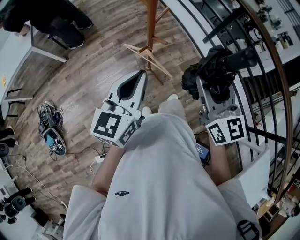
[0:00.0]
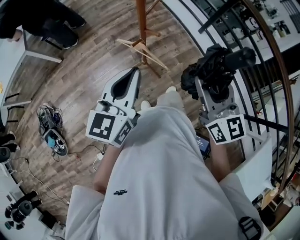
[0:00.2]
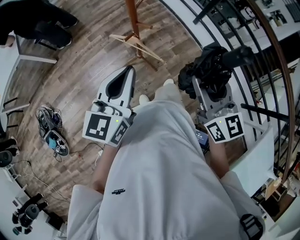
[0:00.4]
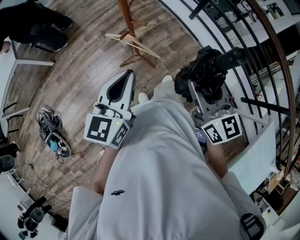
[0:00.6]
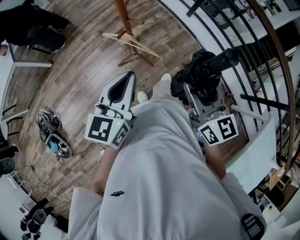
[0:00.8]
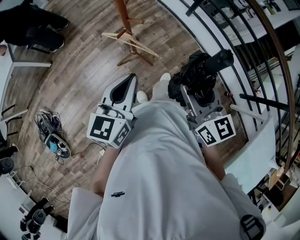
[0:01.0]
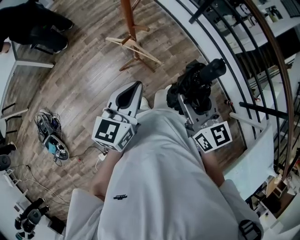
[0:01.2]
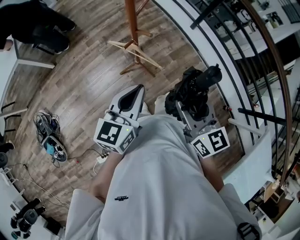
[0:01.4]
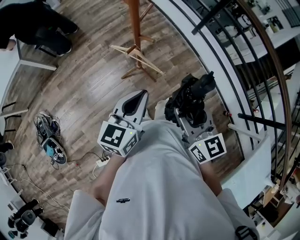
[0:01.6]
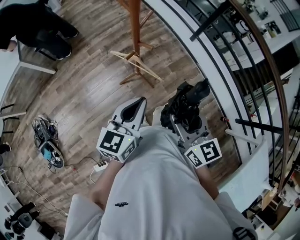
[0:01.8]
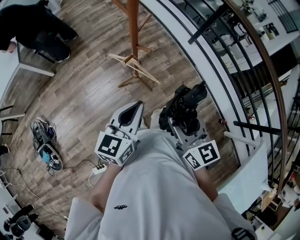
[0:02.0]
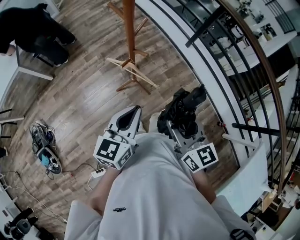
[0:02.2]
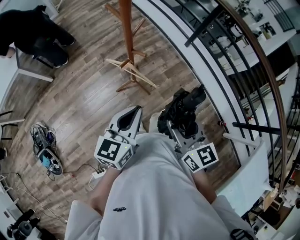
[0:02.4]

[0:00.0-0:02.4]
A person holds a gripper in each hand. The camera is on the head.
0:00.0 to 0:01.2: The left gripper shifts roughly 5 cm downward. Meanwhile the right gripper travels backward and downward by approximately 10 cm.
0:01.2 to 0:02.4: The grippers stay close to where they were, moving slightly.

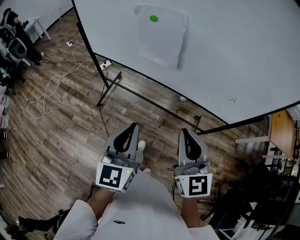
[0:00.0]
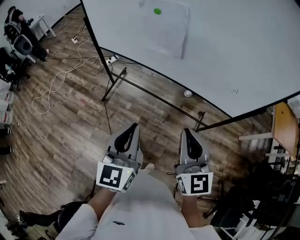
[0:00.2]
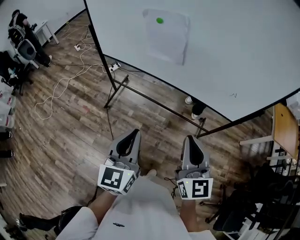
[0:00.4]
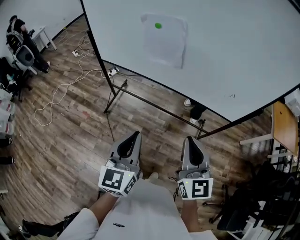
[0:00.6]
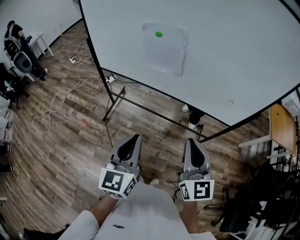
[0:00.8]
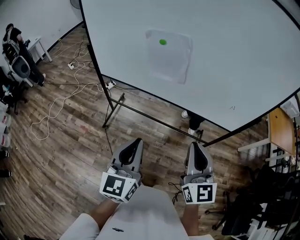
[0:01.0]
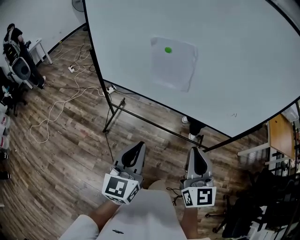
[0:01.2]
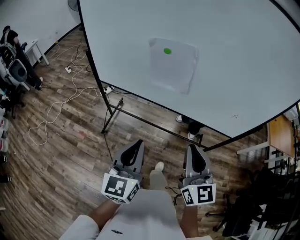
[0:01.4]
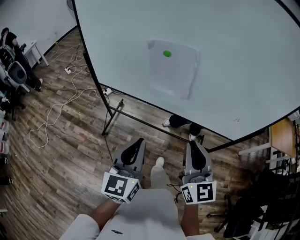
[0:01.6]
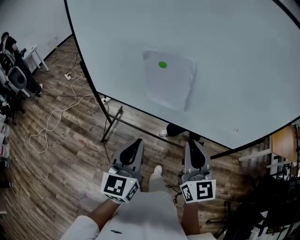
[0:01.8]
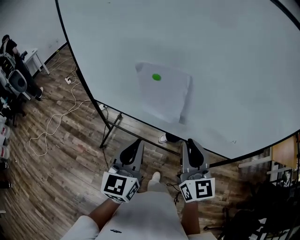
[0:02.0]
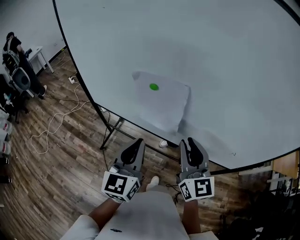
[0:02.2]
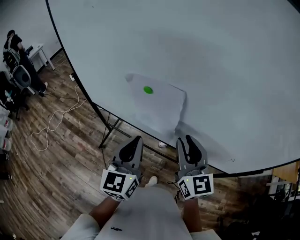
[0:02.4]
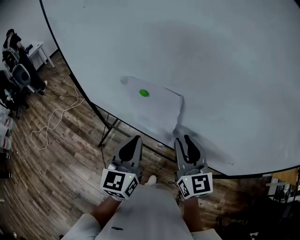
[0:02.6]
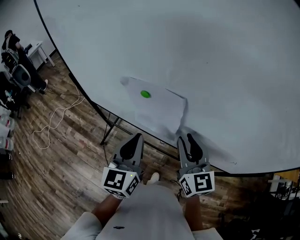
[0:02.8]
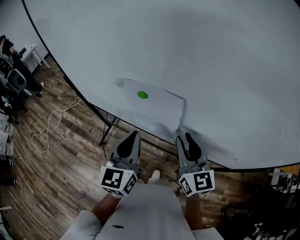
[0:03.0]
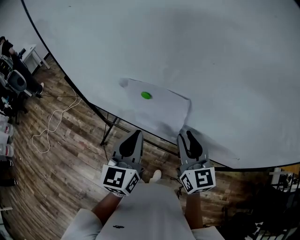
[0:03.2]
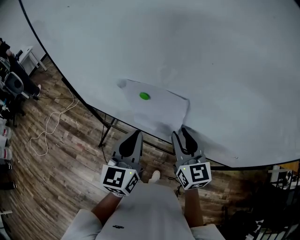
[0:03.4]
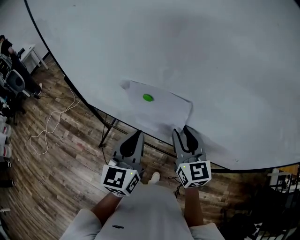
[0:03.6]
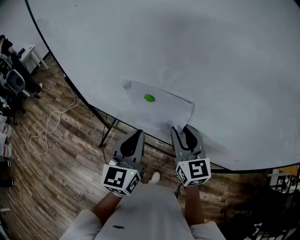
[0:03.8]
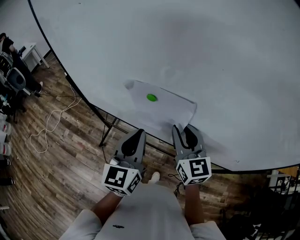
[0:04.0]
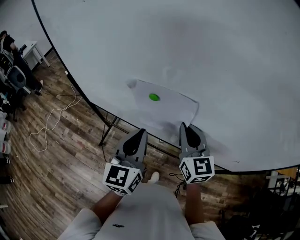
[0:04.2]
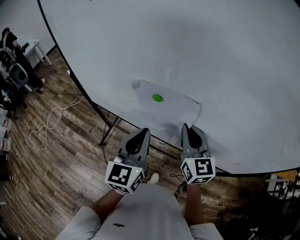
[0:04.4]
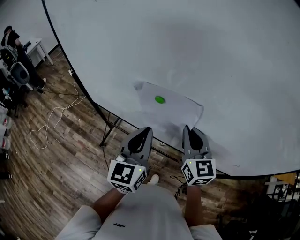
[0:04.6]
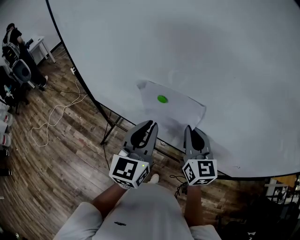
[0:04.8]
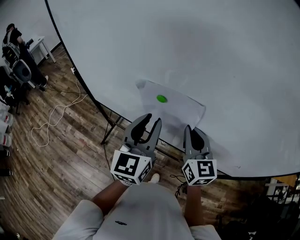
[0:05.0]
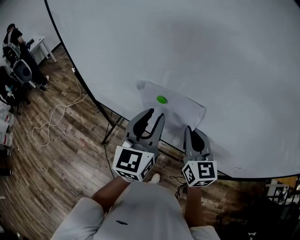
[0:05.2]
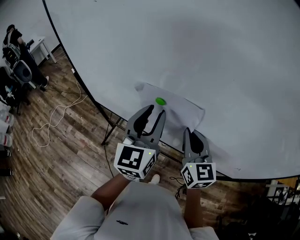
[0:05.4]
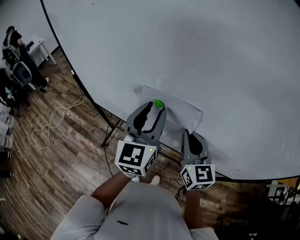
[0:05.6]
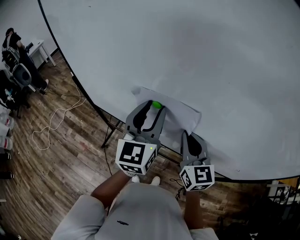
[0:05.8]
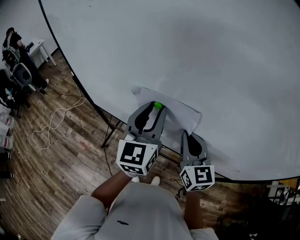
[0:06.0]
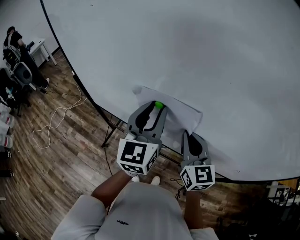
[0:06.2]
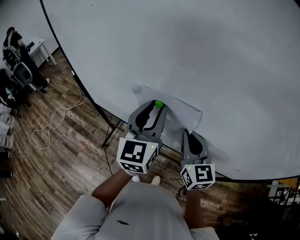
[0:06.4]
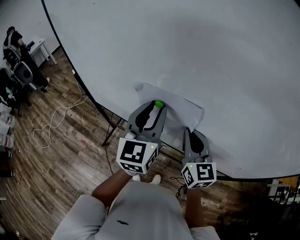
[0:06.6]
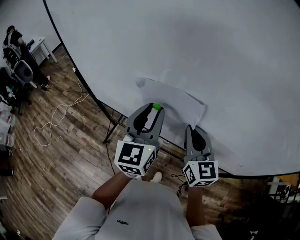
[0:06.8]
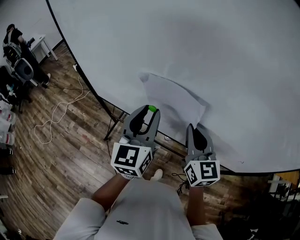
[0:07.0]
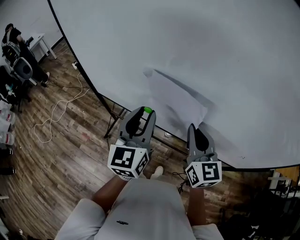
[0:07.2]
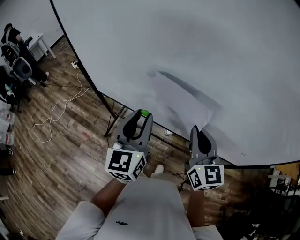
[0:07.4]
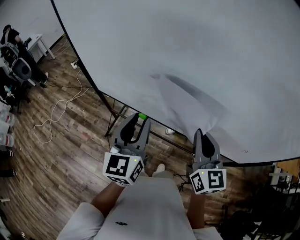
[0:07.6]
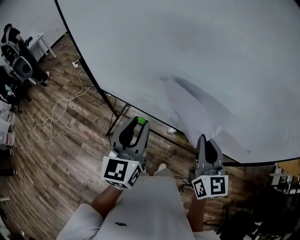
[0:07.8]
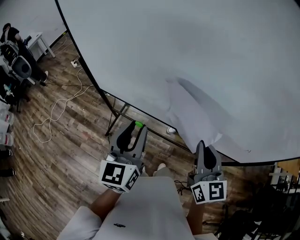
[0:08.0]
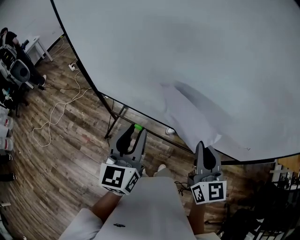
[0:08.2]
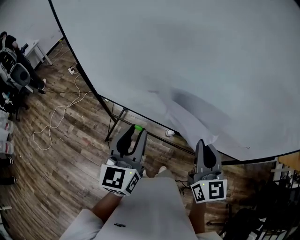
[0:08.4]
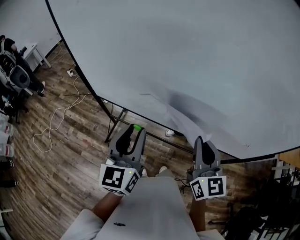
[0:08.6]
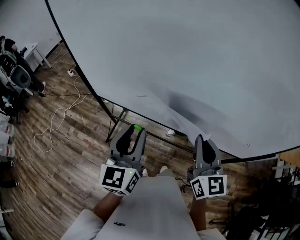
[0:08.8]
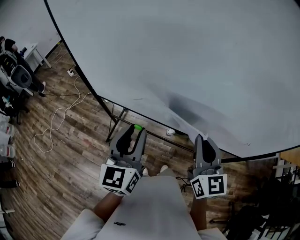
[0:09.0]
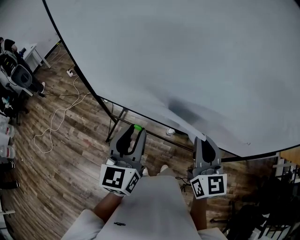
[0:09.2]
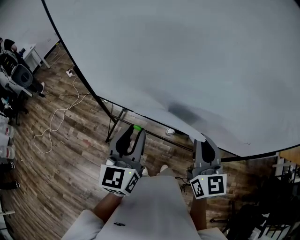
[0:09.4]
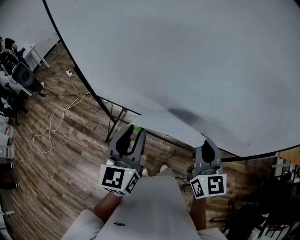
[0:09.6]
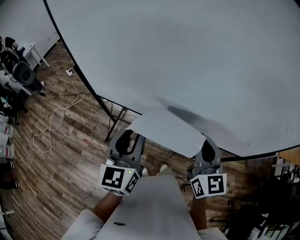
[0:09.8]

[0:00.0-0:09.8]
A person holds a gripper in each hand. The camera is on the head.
0:00.0 to 0:01.4: The grippers both shift to the left by approximately 5 cm. The right gripper travels backward and back again, approximately 5 cm each way; the left gripper travels backward and back again, some 5 cm each way.
0:01.4 to 0:02.8: Both grippers move forward, about 25 cm. The right gripper opens.
0:02.8 to 0:04.2: The right gripper moves forward, approximately 5 cm, and closes its fingers.
0:04.2 to 0:05.6: The left gripper is displaced forward and upward by roughly 10 cm, and opens.
0:05.6 to 0:07.0: The left gripper moves roughly 5 cm.
0:07.0 to 0:08.4: The right gripper heads backward, covering about 10 cm; the left gripper heads backward and to the left, covering roughly 10 cm.
0:08.4 to 0:09.8: The grippers make only small movements.

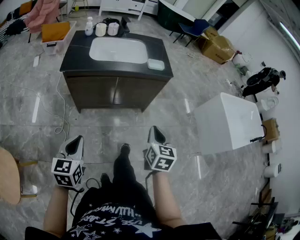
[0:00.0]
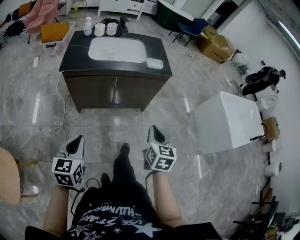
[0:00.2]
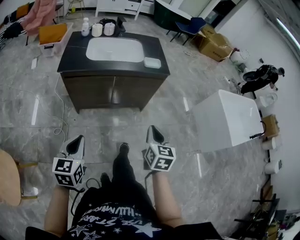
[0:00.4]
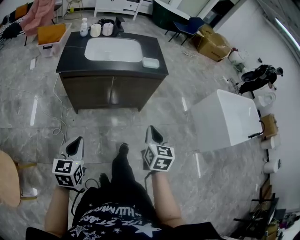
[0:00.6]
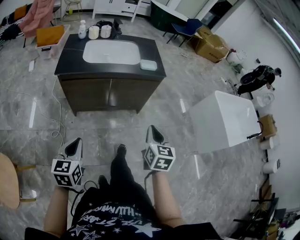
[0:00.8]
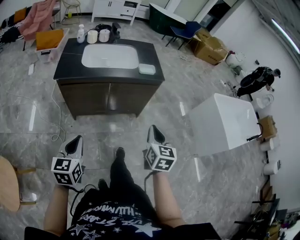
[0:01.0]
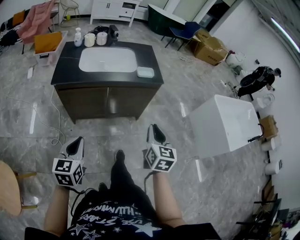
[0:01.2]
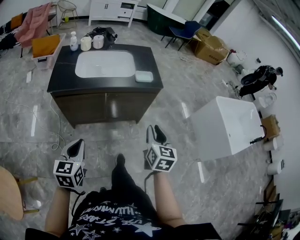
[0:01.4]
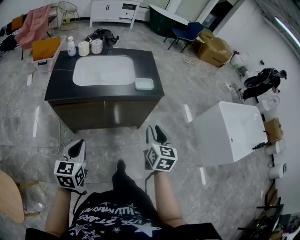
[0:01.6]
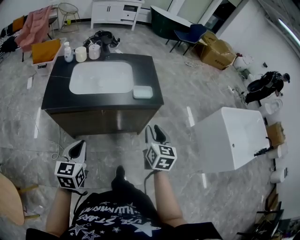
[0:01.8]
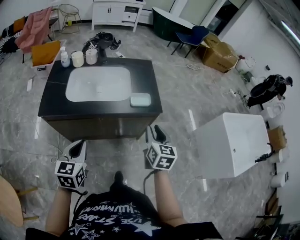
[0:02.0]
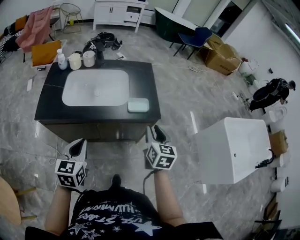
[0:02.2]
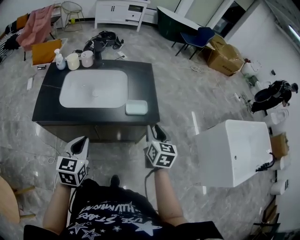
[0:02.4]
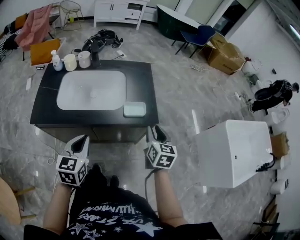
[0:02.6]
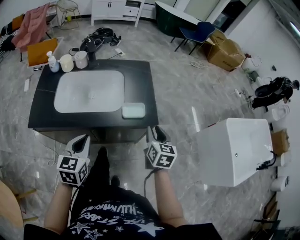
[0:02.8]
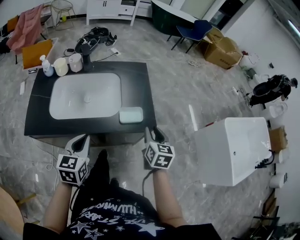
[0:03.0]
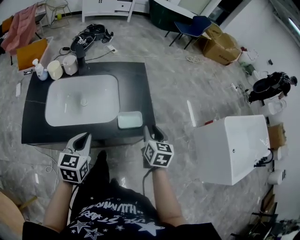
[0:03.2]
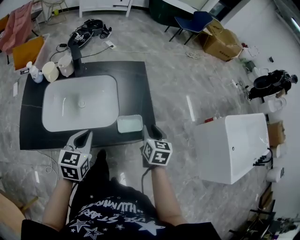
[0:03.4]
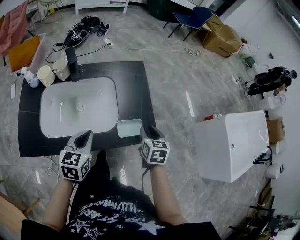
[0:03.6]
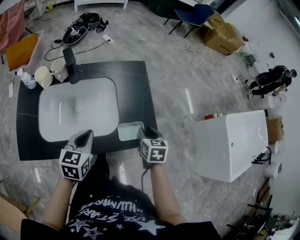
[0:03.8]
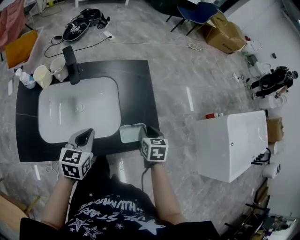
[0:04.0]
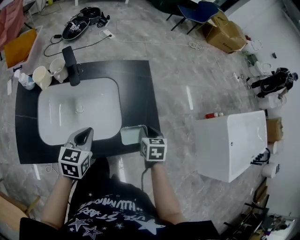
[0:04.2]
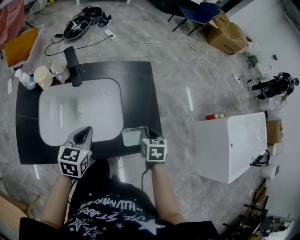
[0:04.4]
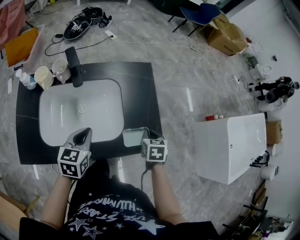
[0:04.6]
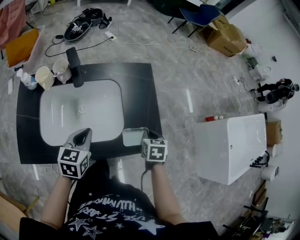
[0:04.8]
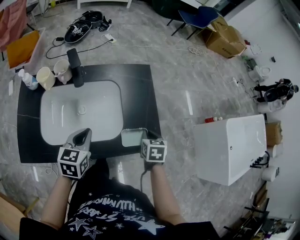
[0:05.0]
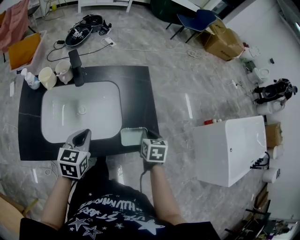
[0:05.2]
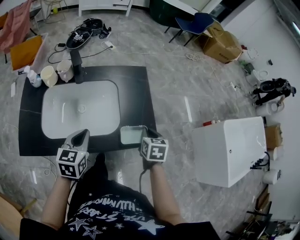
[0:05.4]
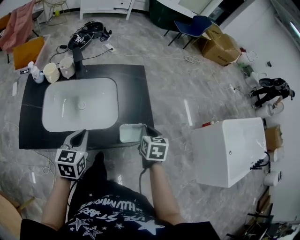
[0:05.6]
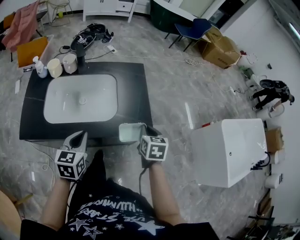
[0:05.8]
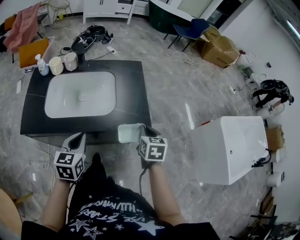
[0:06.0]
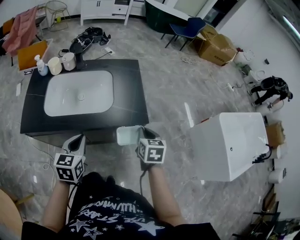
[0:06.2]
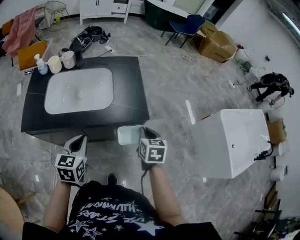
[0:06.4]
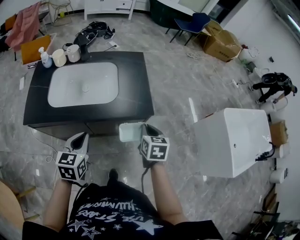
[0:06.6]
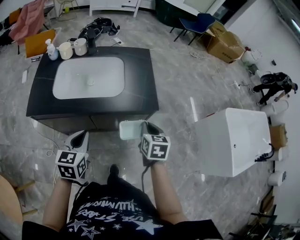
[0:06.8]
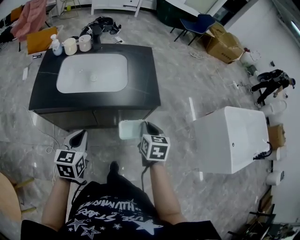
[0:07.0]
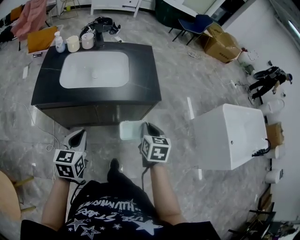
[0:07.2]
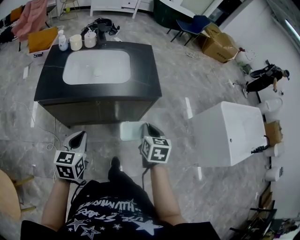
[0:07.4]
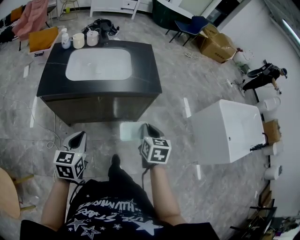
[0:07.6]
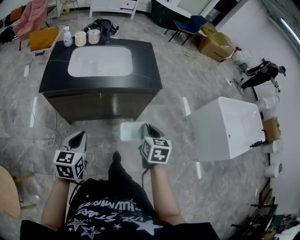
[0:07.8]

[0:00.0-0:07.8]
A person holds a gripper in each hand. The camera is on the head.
0:00.0 to 0:01.6: The grippers both shift forward by approximately 15 cm. The right gripper opens its fingers.
0:01.6 to 0:03.2: Both grippers move forward, roughly 30 cm.
0:03.2 to 0:04.6: The right gripper moves downward and forward, approximately 10 cm, changes its angle by roughly 30 degrees, and closes up, while the left gripper shifts some 15 cm forward and downward.
0:04.6 to 0:06.2: The left gripper goes about 20 cm backward. Meanwhile the right gripper is displaced backward and upward by some 15 cm.
0:06.2 to 0:07.8: The two grippers go roughly 25 cm backward.

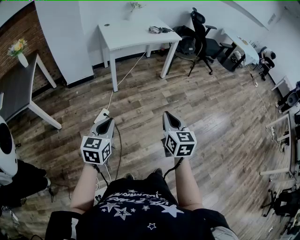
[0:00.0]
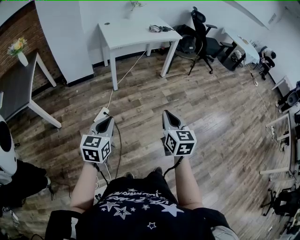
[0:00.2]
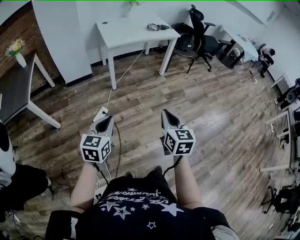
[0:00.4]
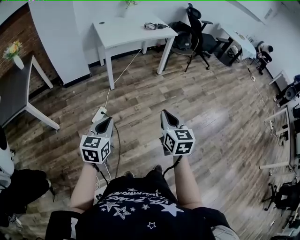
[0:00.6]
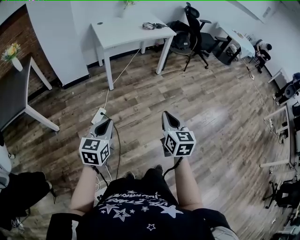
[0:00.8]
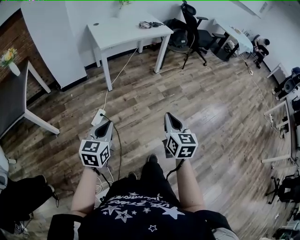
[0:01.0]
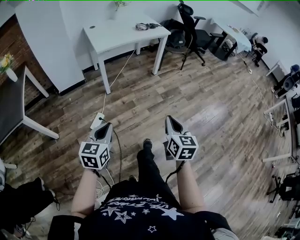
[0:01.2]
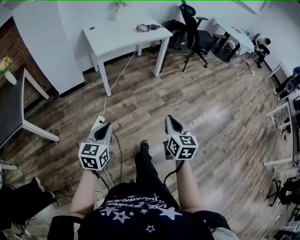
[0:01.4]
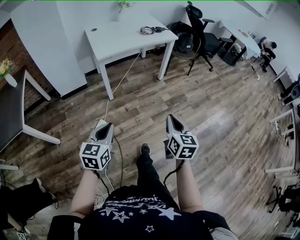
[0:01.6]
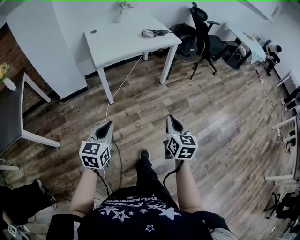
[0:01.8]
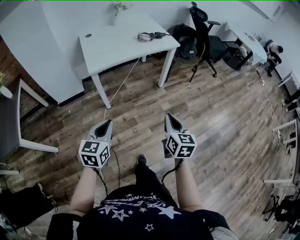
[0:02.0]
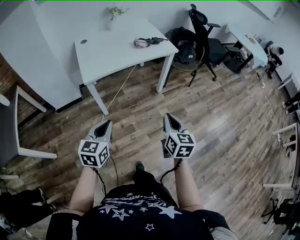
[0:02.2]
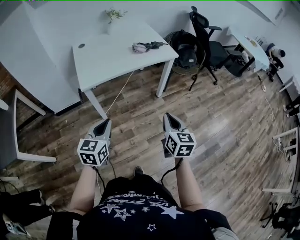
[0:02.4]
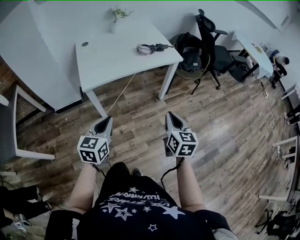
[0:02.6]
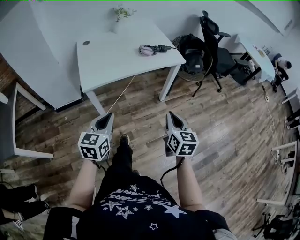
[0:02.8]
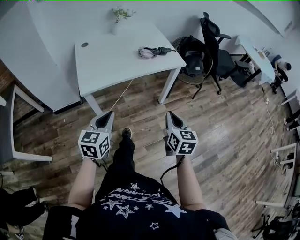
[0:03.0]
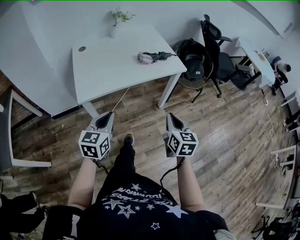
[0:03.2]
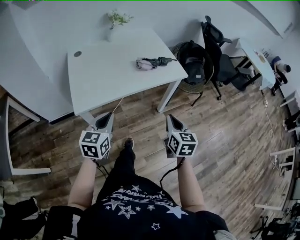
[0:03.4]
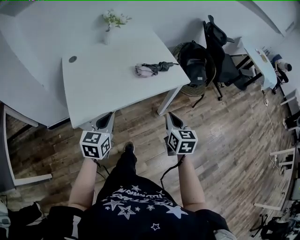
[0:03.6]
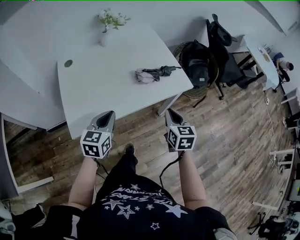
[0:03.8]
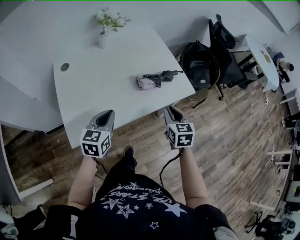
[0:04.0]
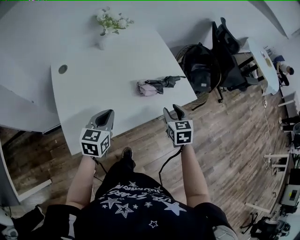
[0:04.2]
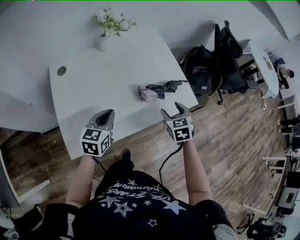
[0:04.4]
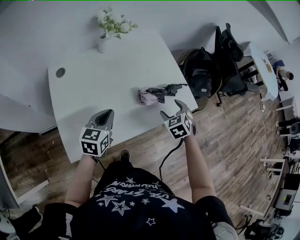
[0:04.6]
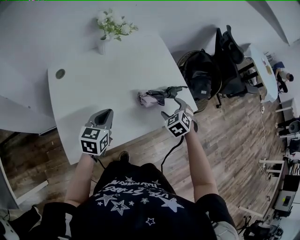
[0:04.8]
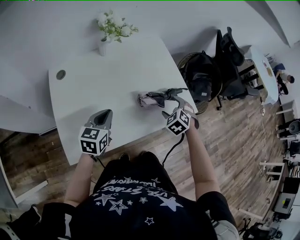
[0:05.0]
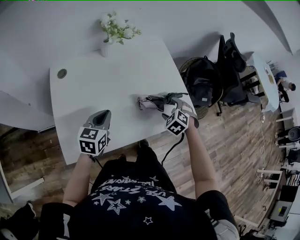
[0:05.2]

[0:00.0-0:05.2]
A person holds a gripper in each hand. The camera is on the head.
0:00.0 to 0:01.8: The two grippers go roughly 20 cm forward.
0:01.8 to 0:03.4: The pair of grippers is taken forward, some 40 cm.
0:03.4 to 0:05.2: Both grippers travel together forward, some 35 cm. The right gripper twists roughly 60 degrees counterclockwise, seen from behind, and opens.
